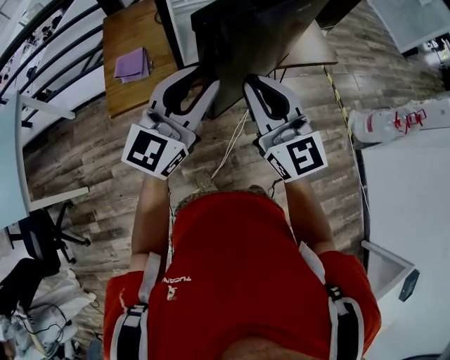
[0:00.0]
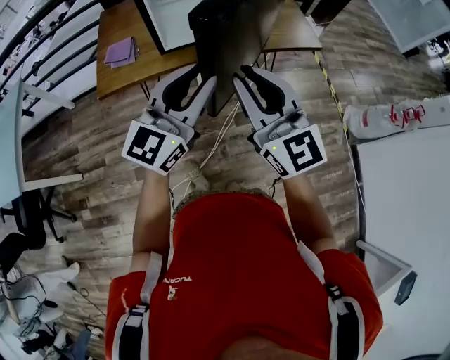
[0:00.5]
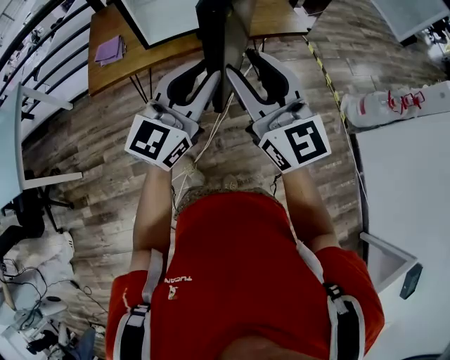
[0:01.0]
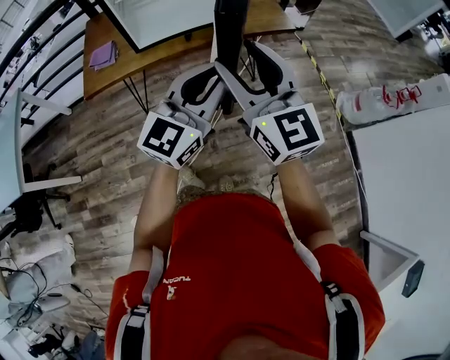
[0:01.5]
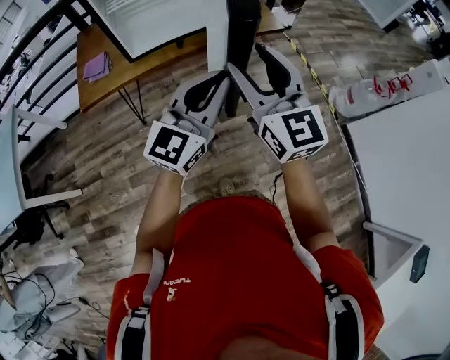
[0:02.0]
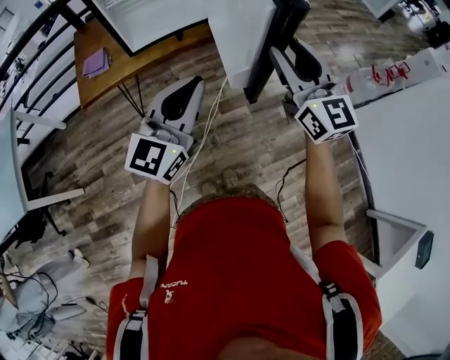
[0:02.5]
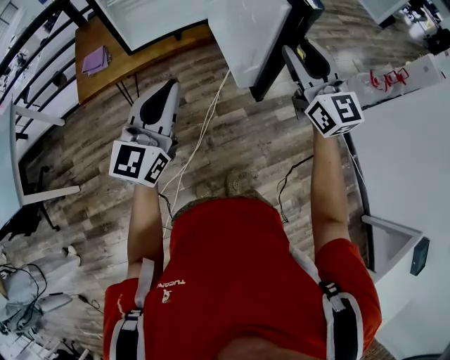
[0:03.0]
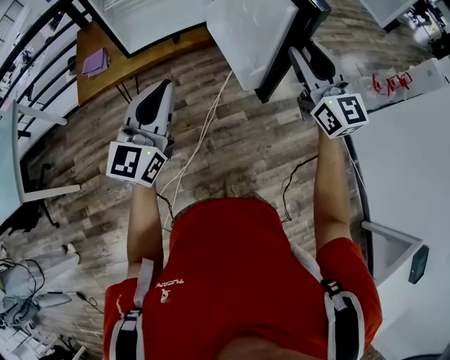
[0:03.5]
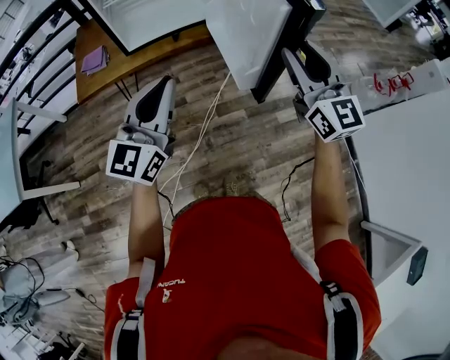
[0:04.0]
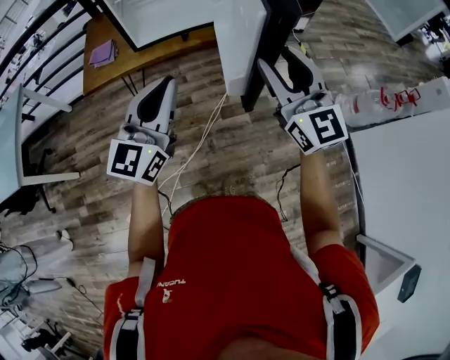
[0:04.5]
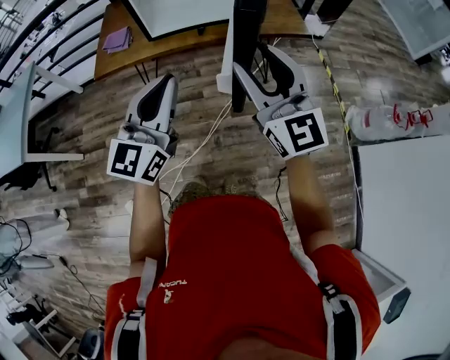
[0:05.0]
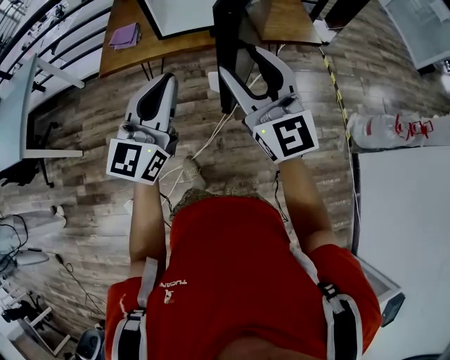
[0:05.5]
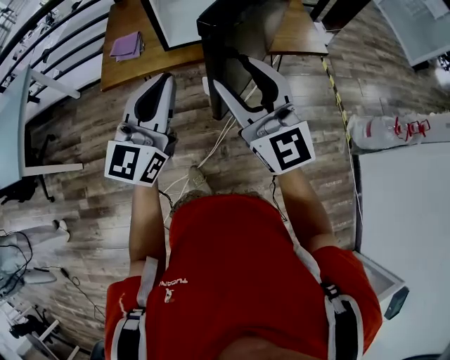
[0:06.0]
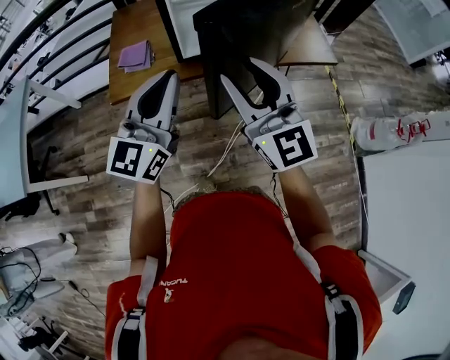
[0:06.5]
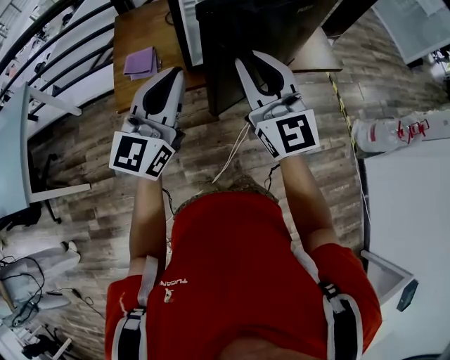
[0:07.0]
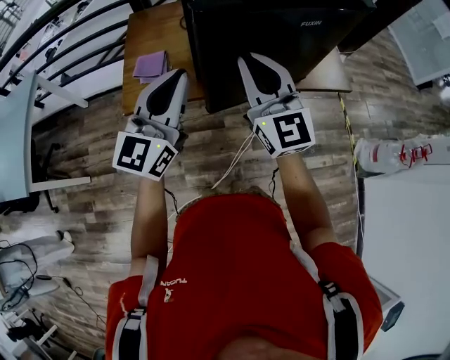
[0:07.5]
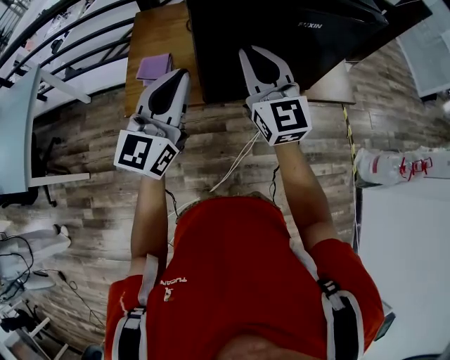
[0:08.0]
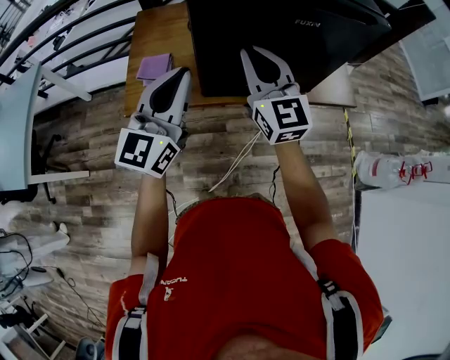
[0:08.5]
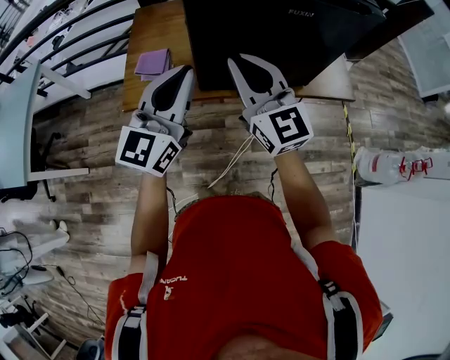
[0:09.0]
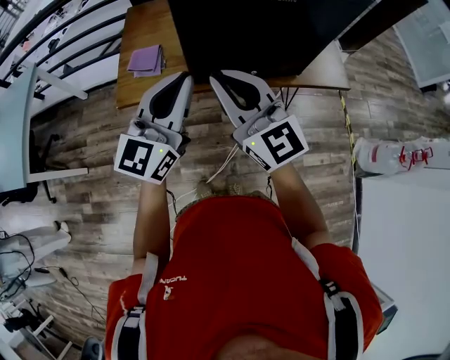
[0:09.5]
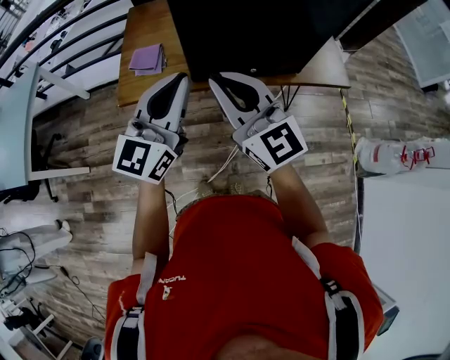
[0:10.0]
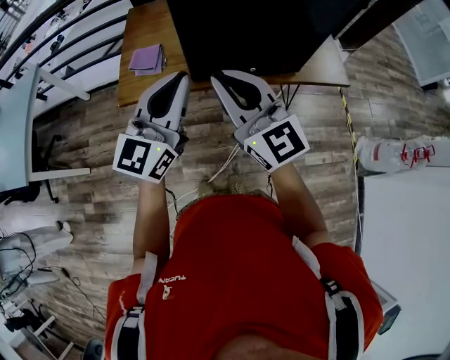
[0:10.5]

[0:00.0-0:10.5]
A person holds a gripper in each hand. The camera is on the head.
0:00.0 to 0:02.0: Both grippers travel together to the right and backward, about 25 cm. The right gripper opens up. Meanwhile the left gripper closes its fingers.
0:02.0 to 0:04.0: The right gripper travels to the right by roughly 10 cm. Meanwhile the left gripper is displaced to the left by about 10 cm.
0:04.0 to 0:06.5: The left gripper travels to the left and forward by some 20 cm; the right gripper travels to the left by some 30 cm.
0:06.5 to 0:08.5: The left gripper is displaced forward by about 10 cm, while the right gripper goes about 15 cm forward, and closes its fingers.
0:08.5 to 0:10.5: The left gripper moves backward, approximately 5 cm; the right gripper shifts roughly 15 cm backward.

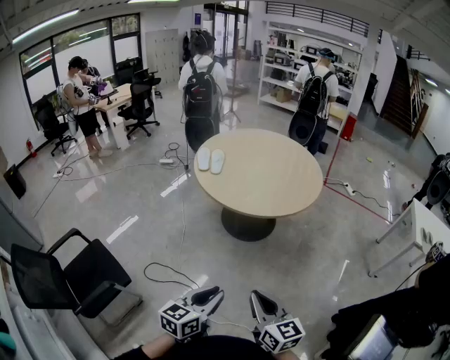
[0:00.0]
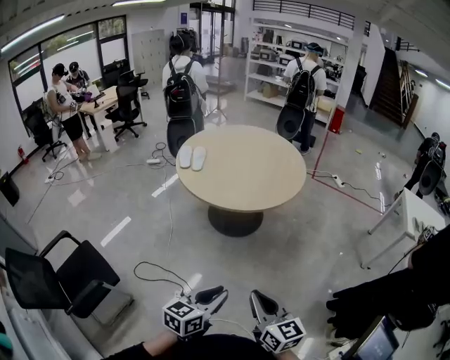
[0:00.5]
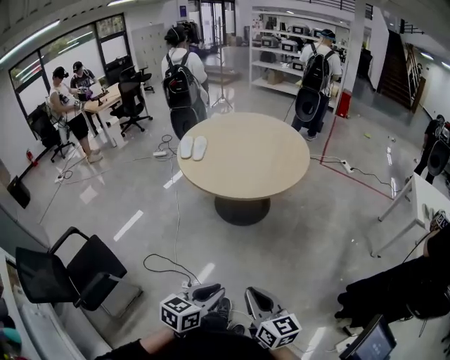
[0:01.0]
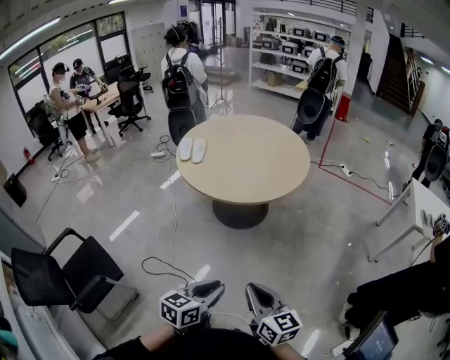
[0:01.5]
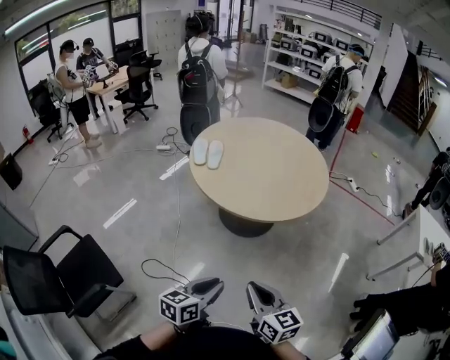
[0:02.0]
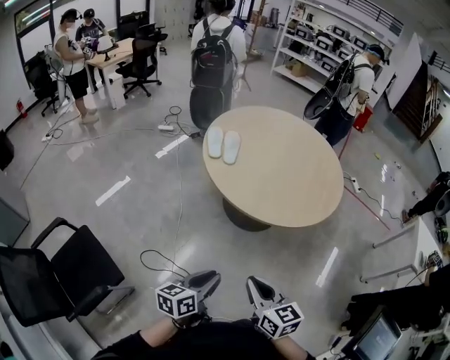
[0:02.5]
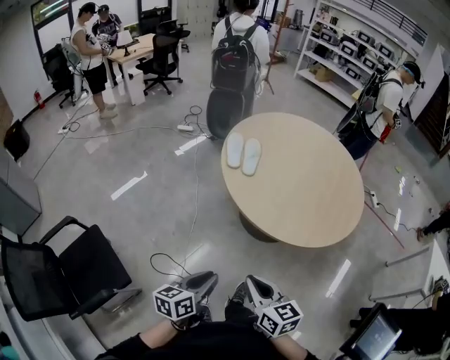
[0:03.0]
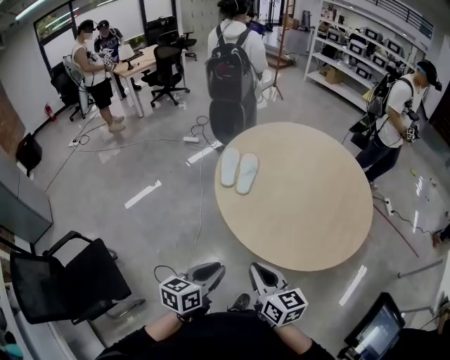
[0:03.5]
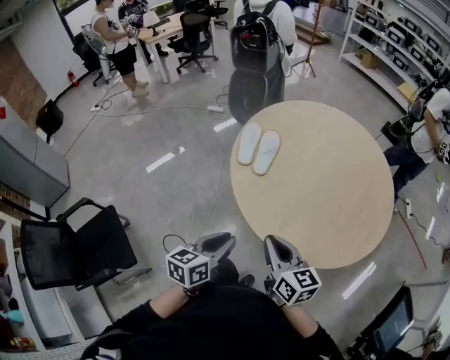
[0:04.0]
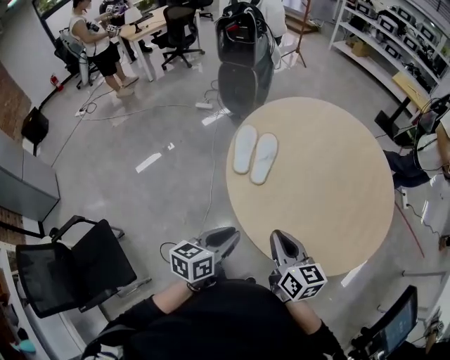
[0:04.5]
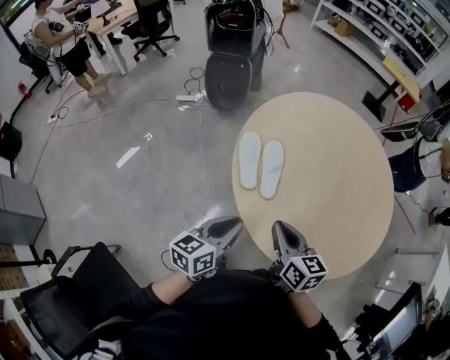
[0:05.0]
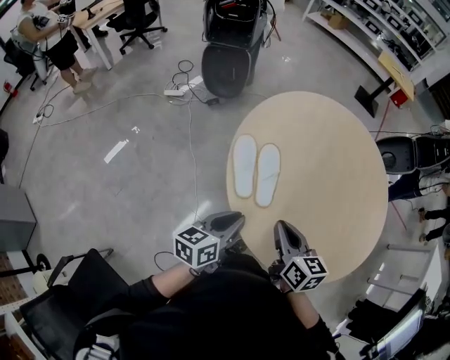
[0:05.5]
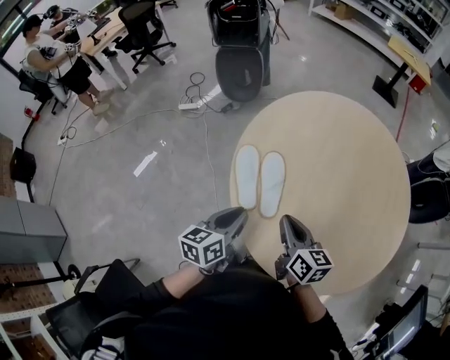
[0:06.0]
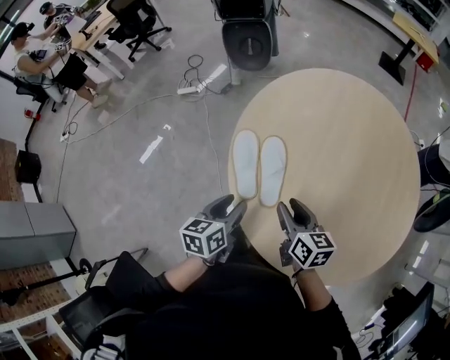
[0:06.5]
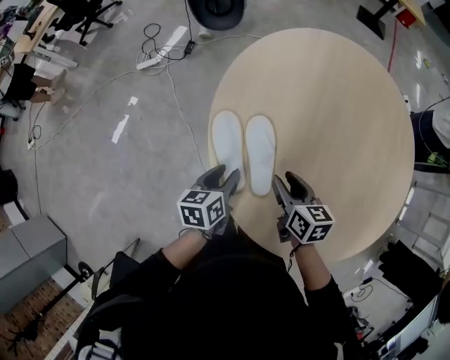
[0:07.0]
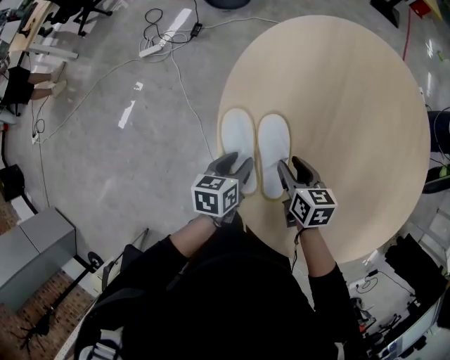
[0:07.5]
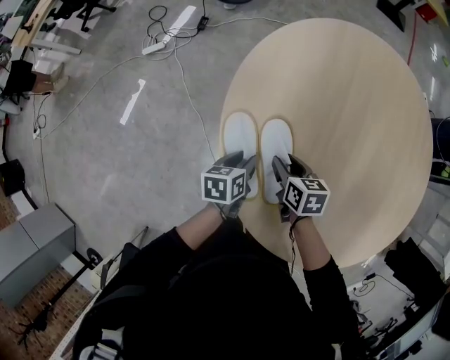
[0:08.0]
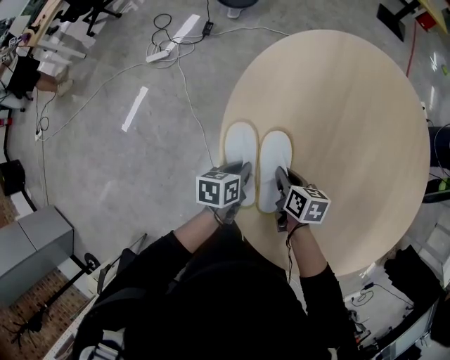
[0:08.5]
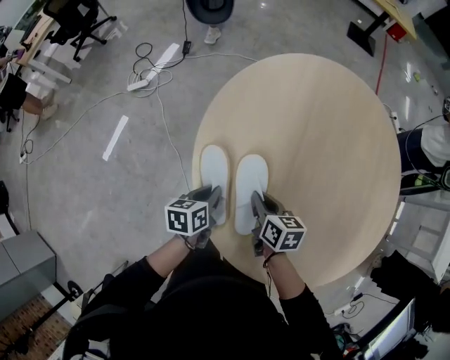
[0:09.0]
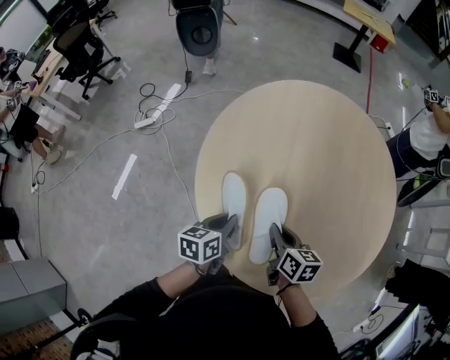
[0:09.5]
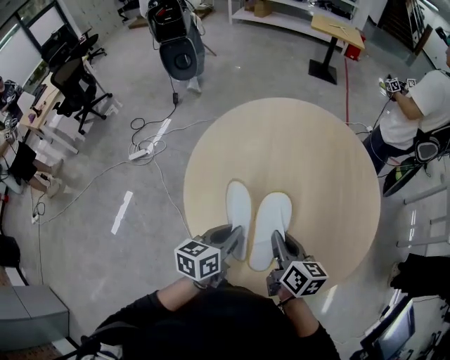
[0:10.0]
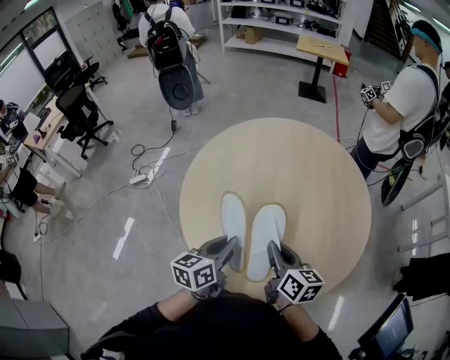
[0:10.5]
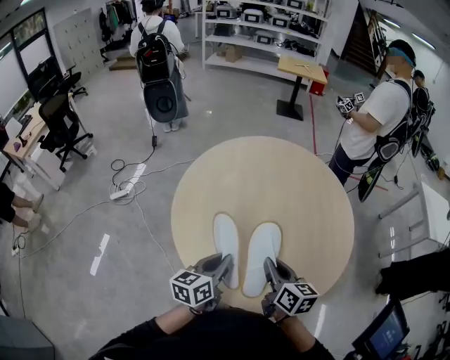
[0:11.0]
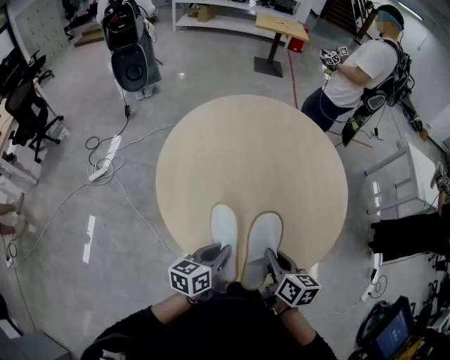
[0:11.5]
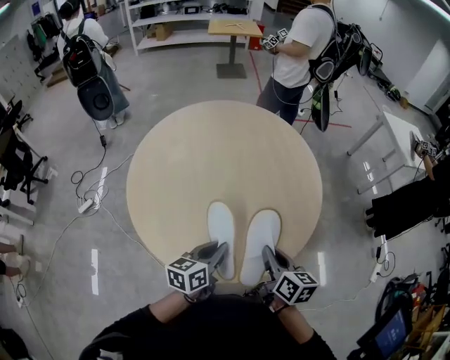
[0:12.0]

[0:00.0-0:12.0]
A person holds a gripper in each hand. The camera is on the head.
0:00.0 to 0:02.0: Both grippers move forward, approximately 15 cm.
0:02.0 to 0:04.0: The two grippers travel together, forward, some 50 cm.
0:04.0 to 0:06.0: The left gripper heads forward and to the left, covering some 40 cm; the right gripper moves forward, some 35 cm, and turns by roughly 20 degrees.
0:06.0 to 0:08.0: The two grippers go roughly 30 cm downward and forward. The left gripper swivels about 30 degrees, and opens its fingers. Meanwhile the right gripper swivels roughly 30 degrees, and opens its fingers.
0:08.0 to 0:10.0: The grippers both shift upward, to the right and backward by about 35 cm. The right gripper turns by some 30 degrees, and closes its fingers. The left gripper changes its angle by roughly 30 degrees, and closes up.
0:10.0 to 0:12.0: The right gripper travels backward and to the right by approximately 20 cm, and rotates approximately 20 degrees. Meanwhile the left gripper shifts roughly 15 cm to the right and backward, and swivels roughly 20 degrees.

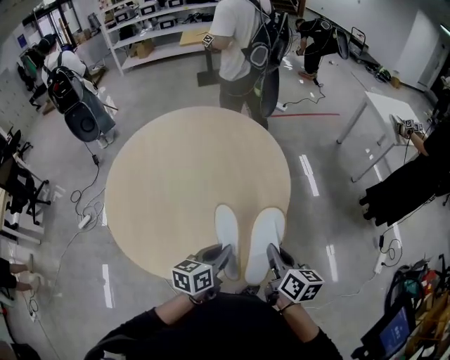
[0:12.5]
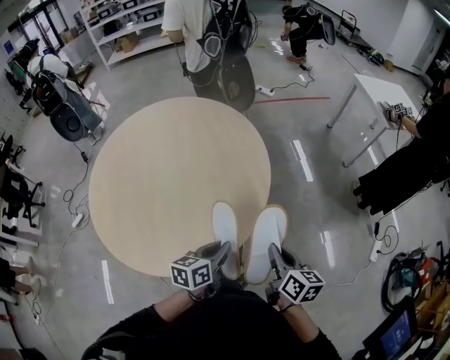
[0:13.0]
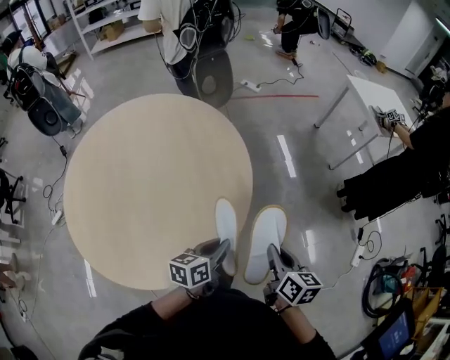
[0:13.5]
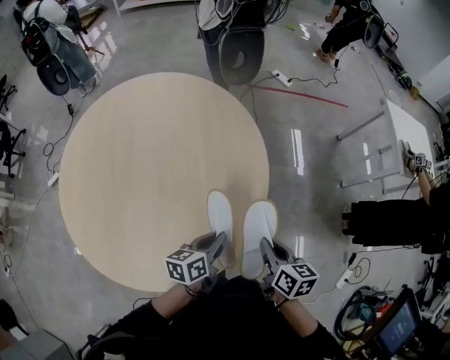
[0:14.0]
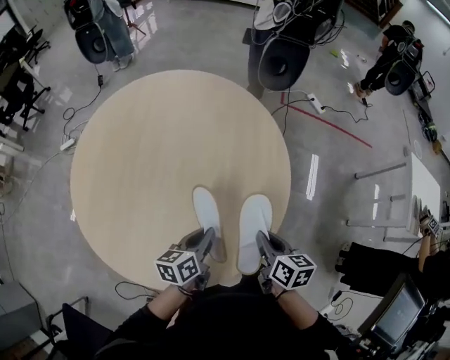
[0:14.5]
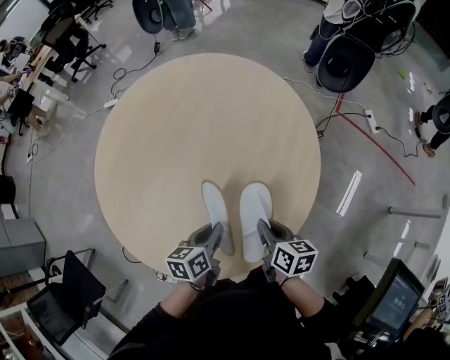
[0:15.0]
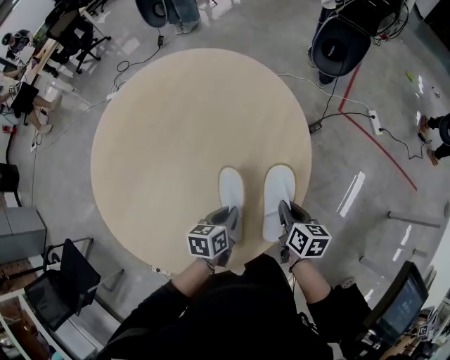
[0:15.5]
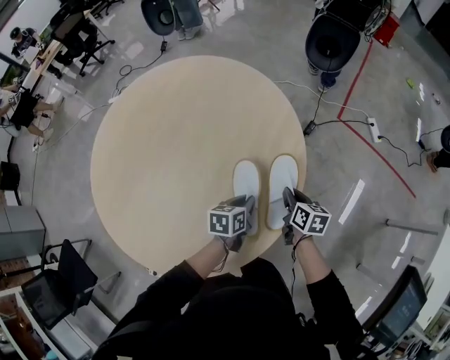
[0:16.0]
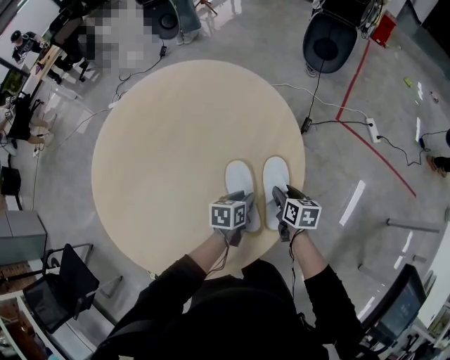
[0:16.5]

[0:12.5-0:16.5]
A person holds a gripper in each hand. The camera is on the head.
0:12.5 to 0:14.5: The right gripper changes place by approximately 35 cm, and rotates roughly 30 degrees. Meanwhile the left gripper ends up about 30 cm from where it was, and changes its angle by roughly 40 degrees.
0:14.5 to 0:16.5: The right gripper moves forward, to the right and downward, roughly 30 cm, changes its angle by approximately 20 degrees, and opens its fingers. Meanwhile the left gripper is displaced to the right, forward and downward by roughly 30 cm, and changes its angle by some 20 degrees.
